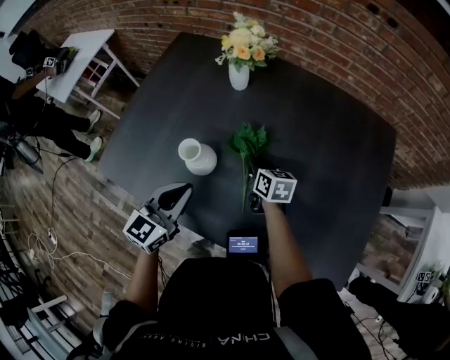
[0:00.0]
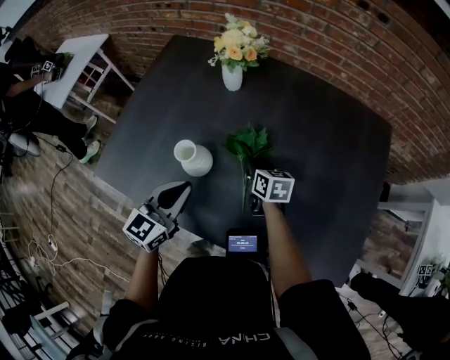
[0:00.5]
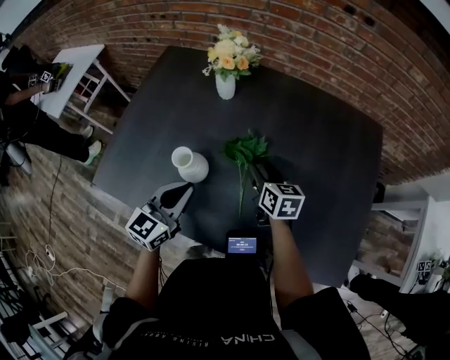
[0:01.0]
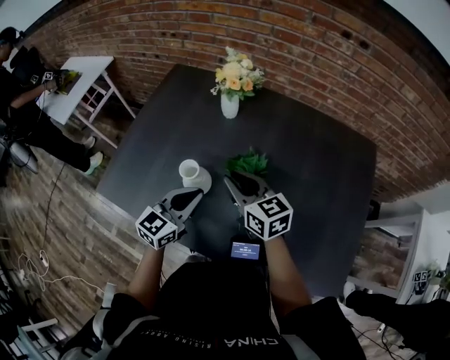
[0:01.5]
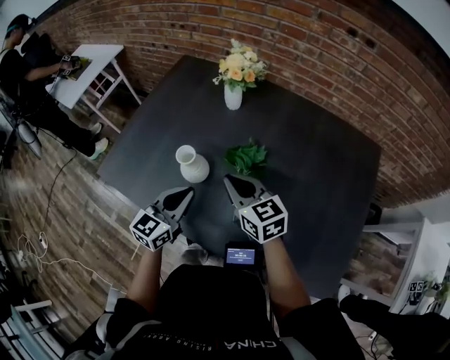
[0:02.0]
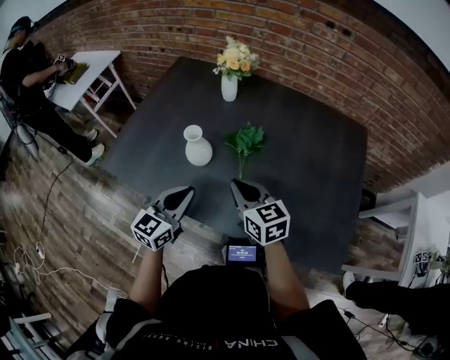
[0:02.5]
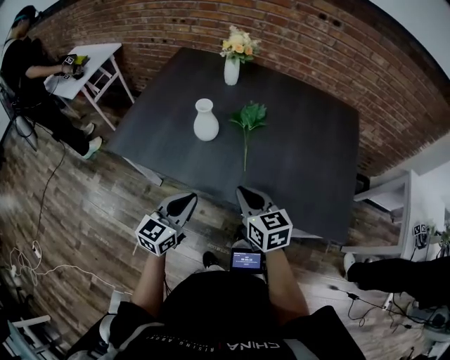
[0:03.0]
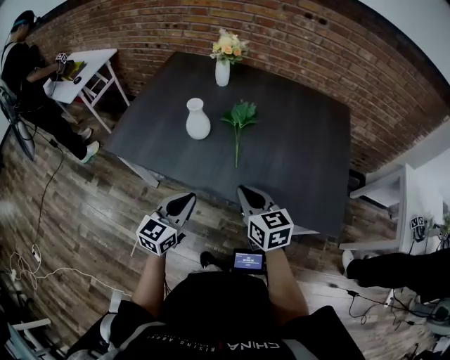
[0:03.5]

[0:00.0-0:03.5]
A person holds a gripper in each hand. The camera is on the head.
0:00.0 to 0:02.0: The right gripper heads upward and backward, covering approximately 20 cm, turns by about 30 degrees, and opens, then closes once more.
0:02.0 to 0:03.5: Both grippers travel together backward, roughly 25 cm.

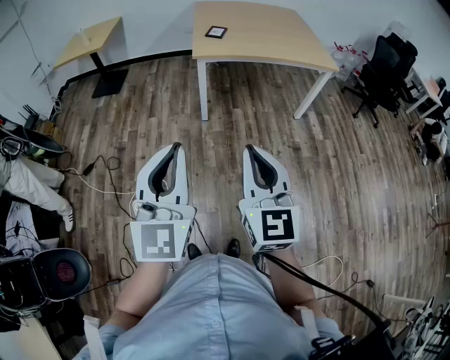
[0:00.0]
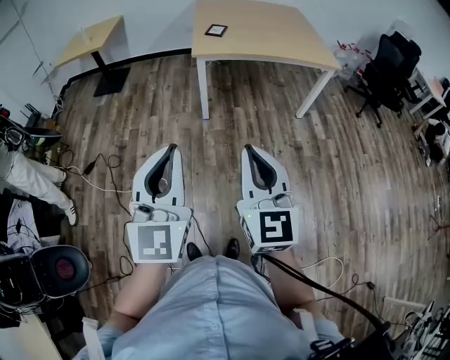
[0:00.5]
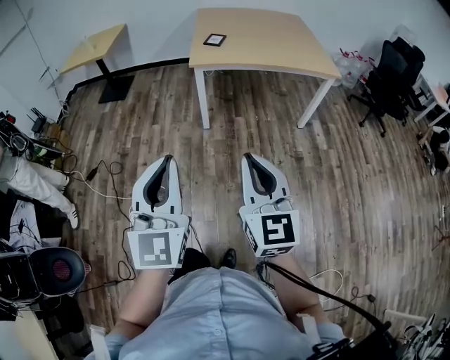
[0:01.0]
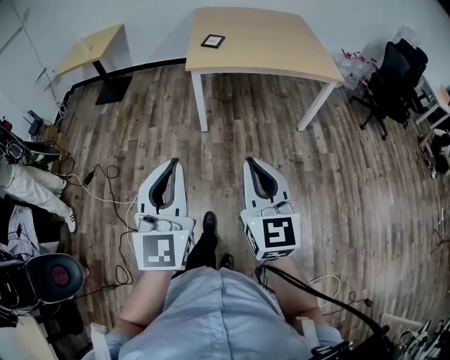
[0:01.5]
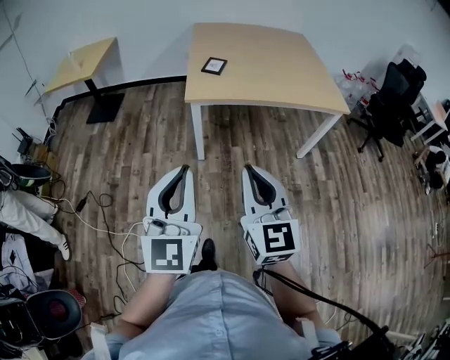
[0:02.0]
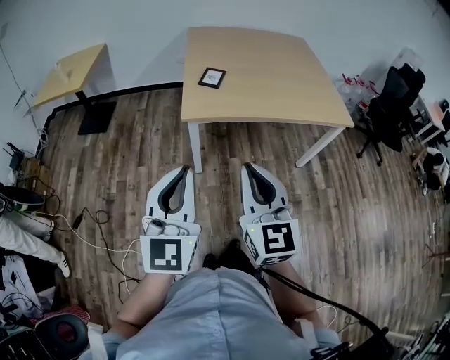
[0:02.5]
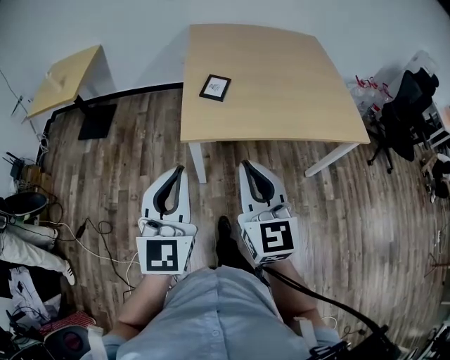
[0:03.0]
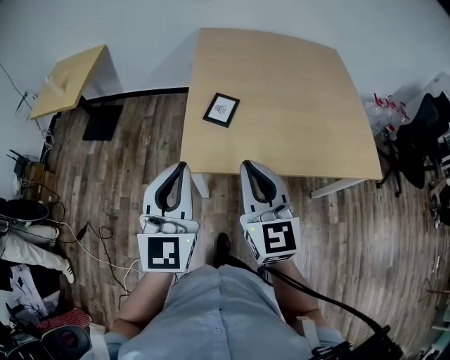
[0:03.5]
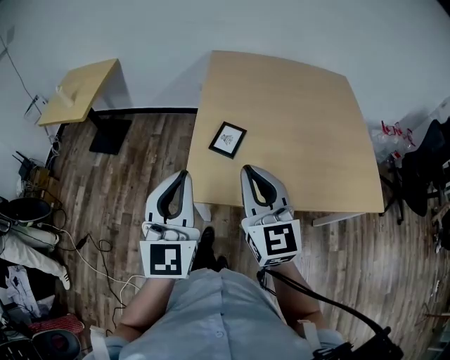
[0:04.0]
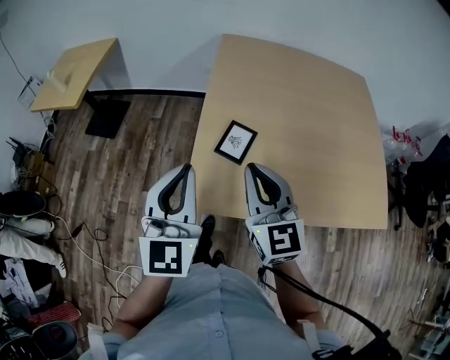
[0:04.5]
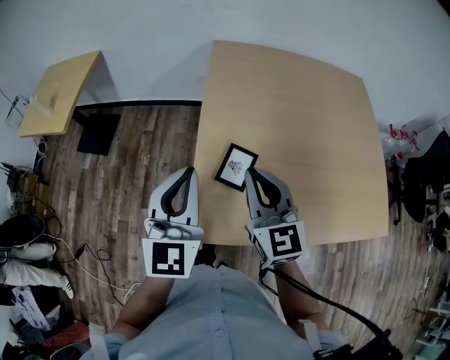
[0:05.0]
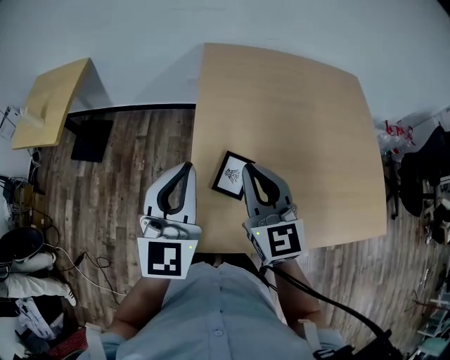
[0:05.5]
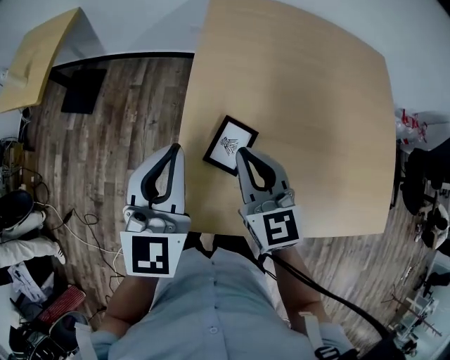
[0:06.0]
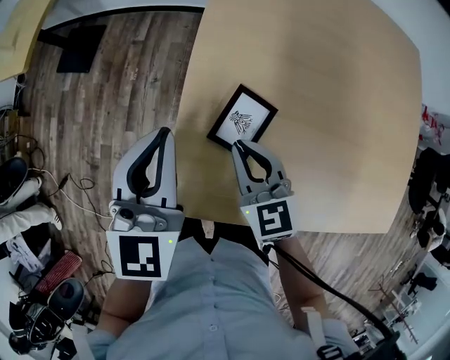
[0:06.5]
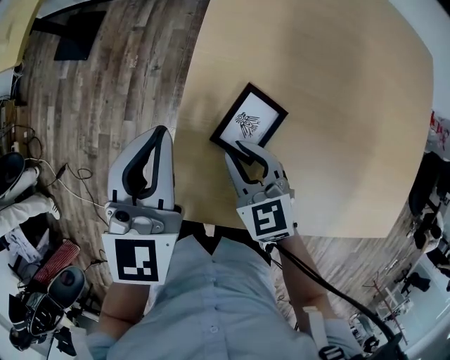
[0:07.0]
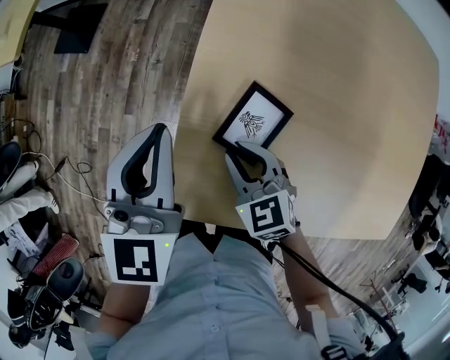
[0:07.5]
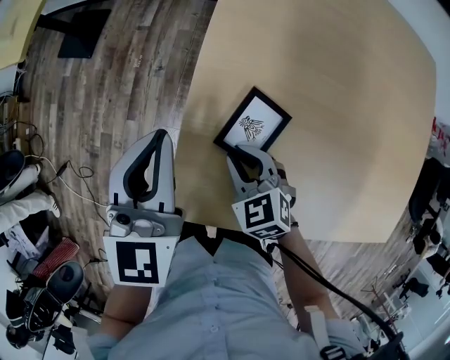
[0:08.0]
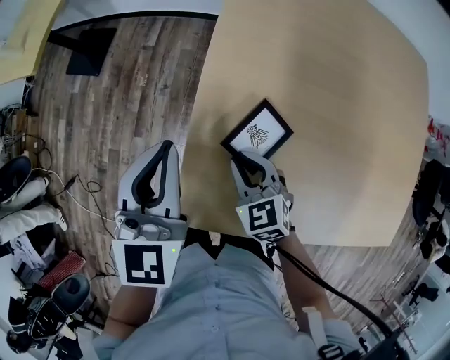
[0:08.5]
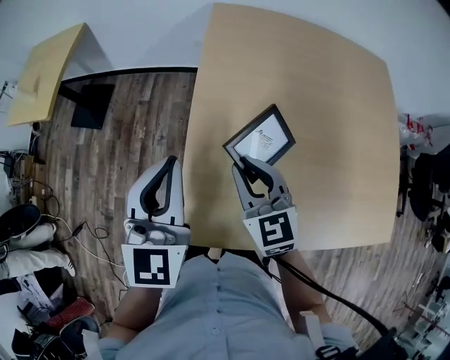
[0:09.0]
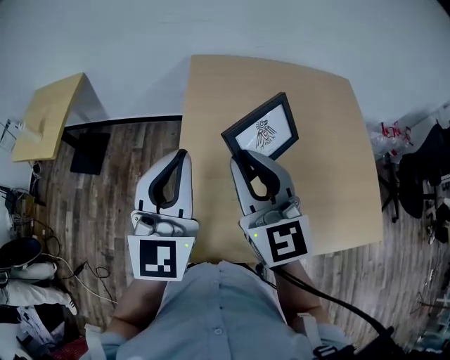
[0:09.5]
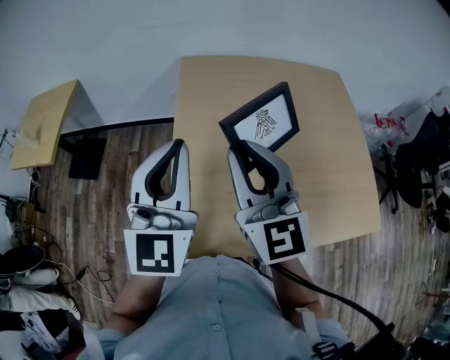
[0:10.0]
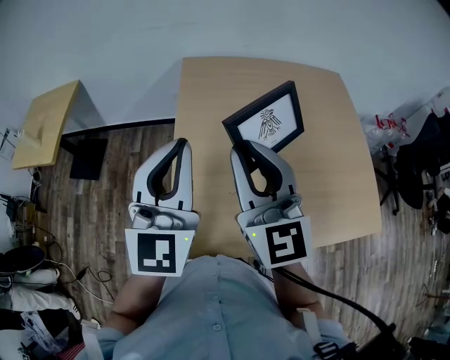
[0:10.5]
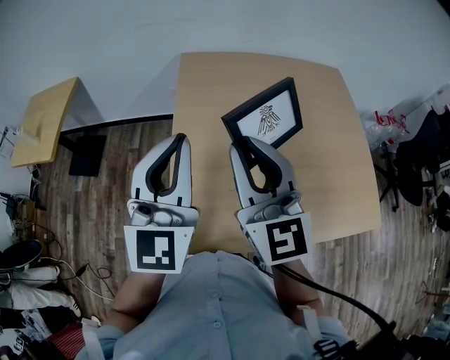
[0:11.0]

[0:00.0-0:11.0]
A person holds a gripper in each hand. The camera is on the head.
0:00.0 to 0:02.0: The two grippers go about 20 cm forward.
0:02.0 to 0:03.5: Both grippers move forward, about 35 cm.
0:03.5 to 0:05.5: Both grippers travel together forward, approximately 25 cm.
0:05.5 to 0:07.5: The right gripper travels downward by some 25 cm, and angles its fingers downward, by roughly 40 degrees, while the left gripper travels downward by some 10 cm, and rotates some 20 degrees.
0:07.5 to 0:09.0: The right gripper goes approximately 15 cm upward, and rotates about 30 degrees. Meanwhile the left gripper moves upward, approximately 10 cm.
0:09.0 to 0:11.0: The right gripper shifts roughly 20 cm upward, and angles its fingers upward, by roughly 30 degrees. The left gripper heads upward and to the right, covering some 15 cm.

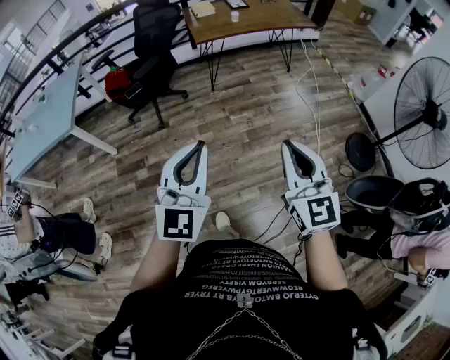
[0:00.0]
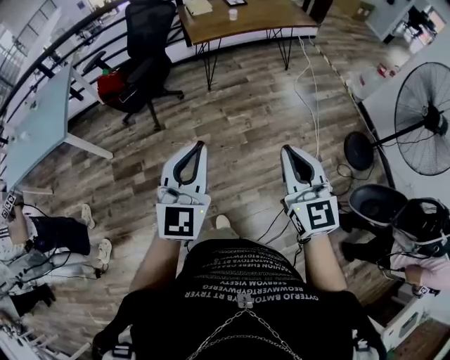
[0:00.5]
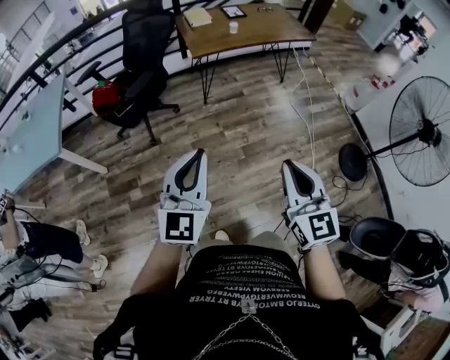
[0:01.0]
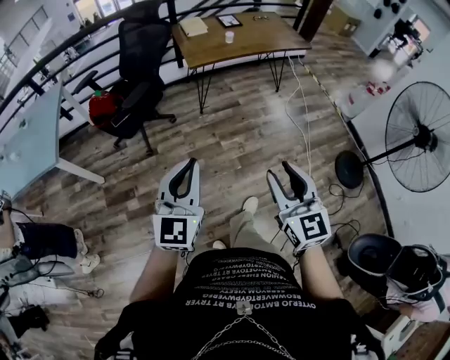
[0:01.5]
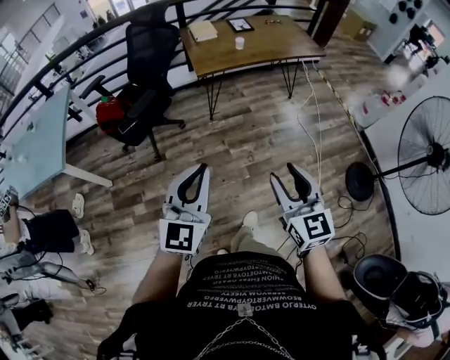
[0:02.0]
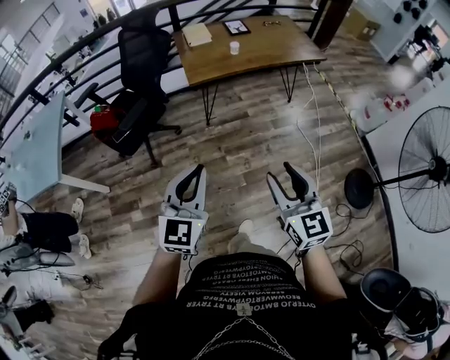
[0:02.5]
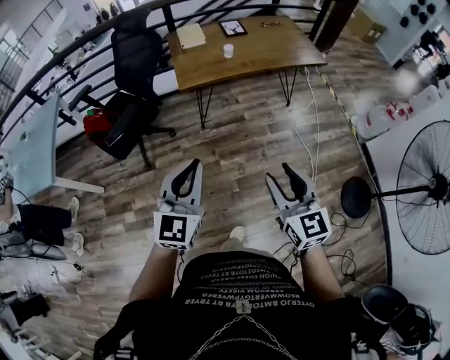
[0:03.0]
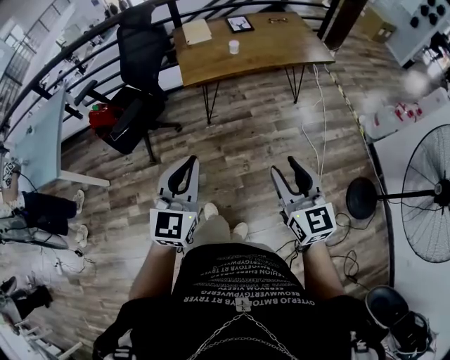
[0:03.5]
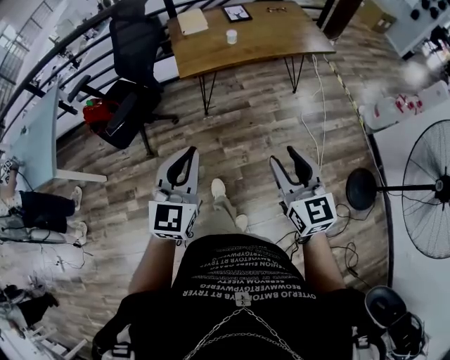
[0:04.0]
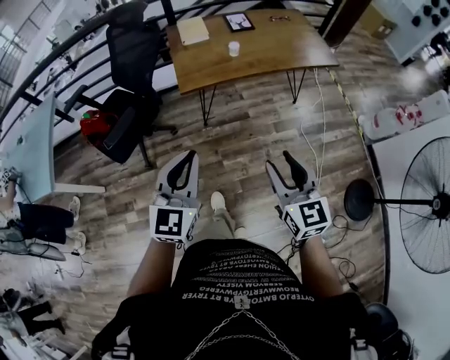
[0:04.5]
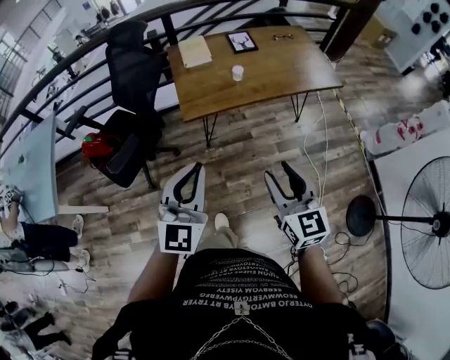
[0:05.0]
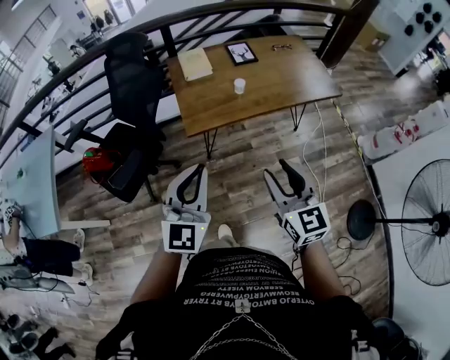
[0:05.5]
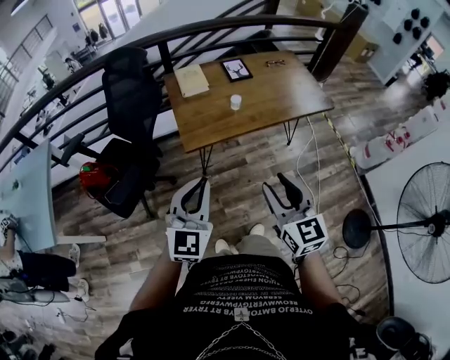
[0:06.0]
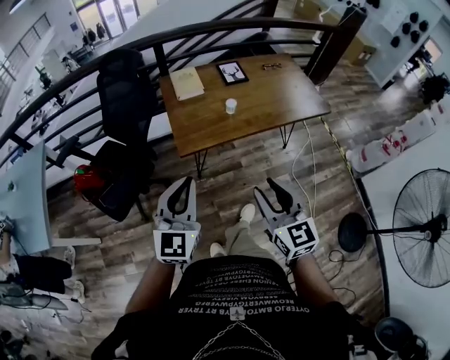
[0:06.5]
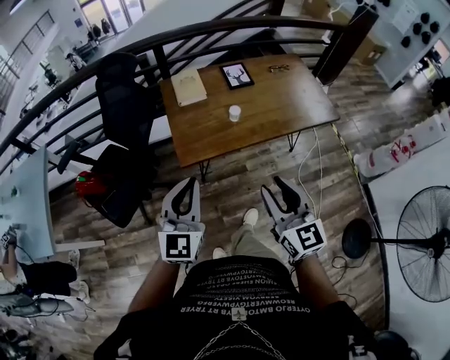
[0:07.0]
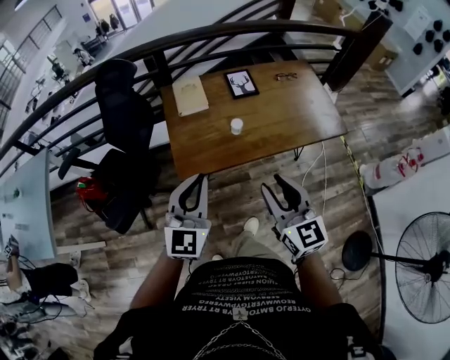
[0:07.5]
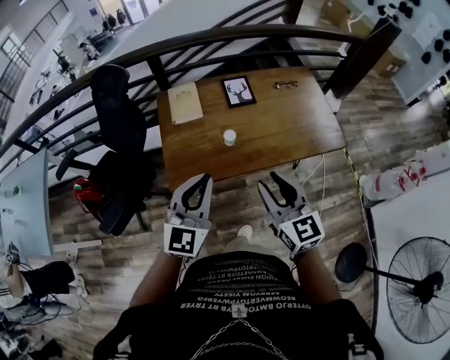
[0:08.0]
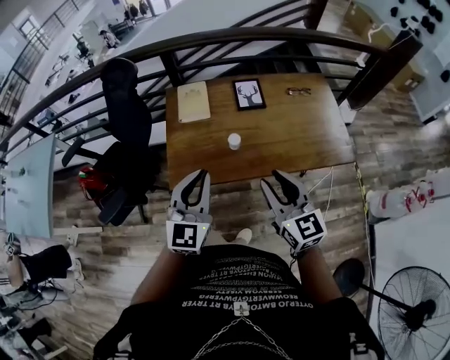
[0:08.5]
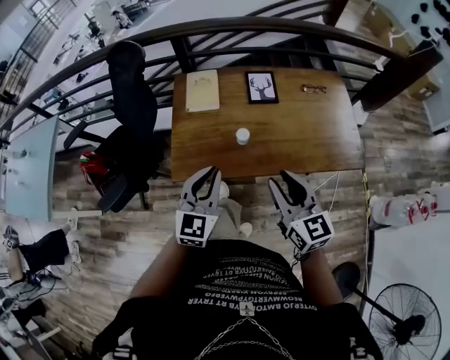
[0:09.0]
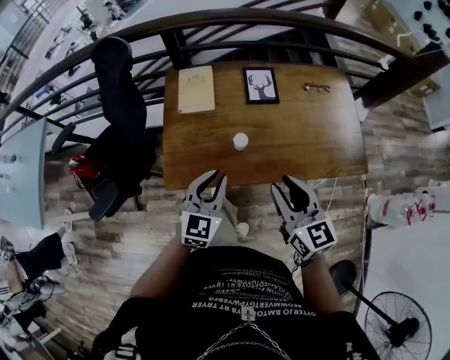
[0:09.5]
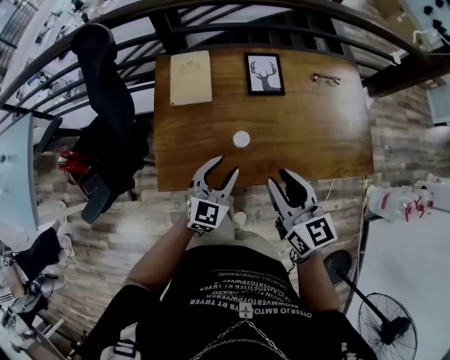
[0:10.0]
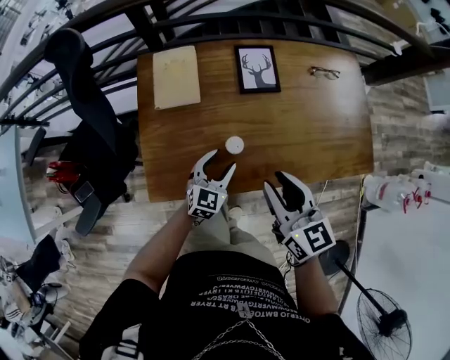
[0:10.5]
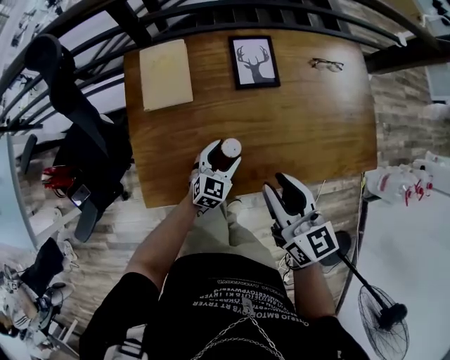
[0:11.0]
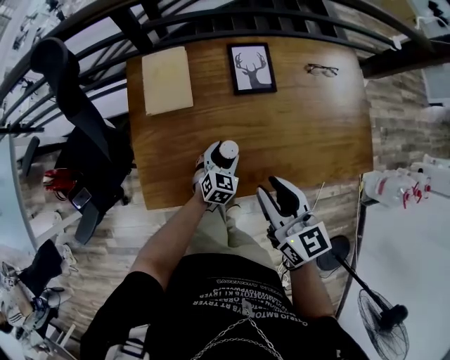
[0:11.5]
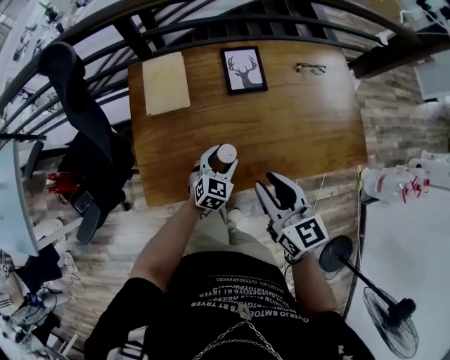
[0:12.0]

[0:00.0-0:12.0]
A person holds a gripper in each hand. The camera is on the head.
0:00.0 to 0:02.0: The grippers both shift forward by approximately 20 cm. The right gripper opens up.
0:02.0 to 0:04.0: The grippers both shift forward and to the right by about 20 cm.
0:04.0 to 0:06.0: The grippers both shift forward by approximately 20 cm.
0:06.0 to 0:08.0: The two grippers go approximately 25 cm forward and to the right.
0:08.0 to 0:10.0: The left gripper heads downward and forward, covering approximately 30 cm, and opens up, while the right gripper goes roughly 20 cm forward and downward.
0:10.0 to 0:12.0: The left gripper moves downward and forward, approximately 15 cm.
